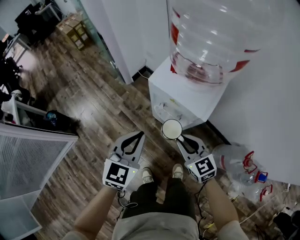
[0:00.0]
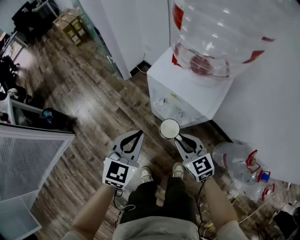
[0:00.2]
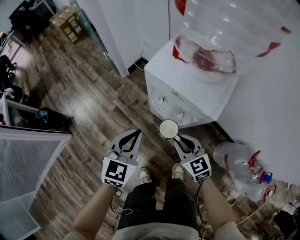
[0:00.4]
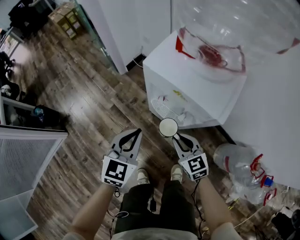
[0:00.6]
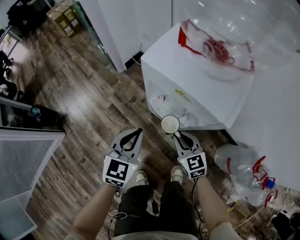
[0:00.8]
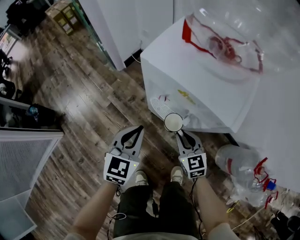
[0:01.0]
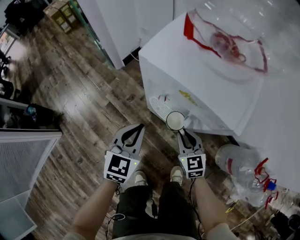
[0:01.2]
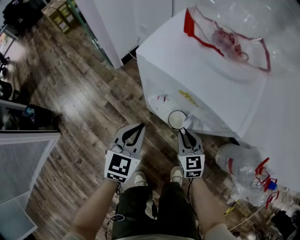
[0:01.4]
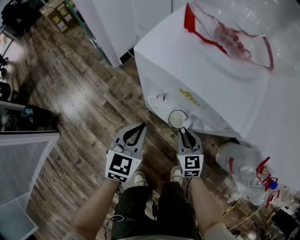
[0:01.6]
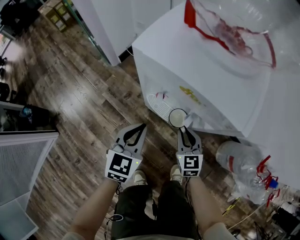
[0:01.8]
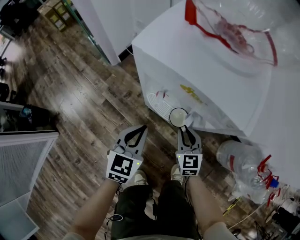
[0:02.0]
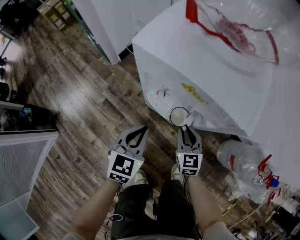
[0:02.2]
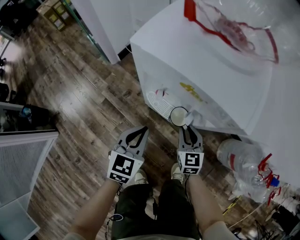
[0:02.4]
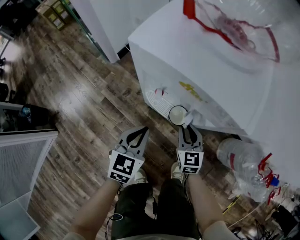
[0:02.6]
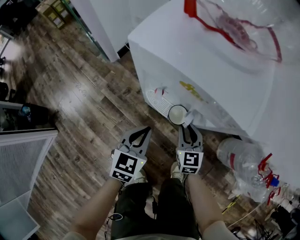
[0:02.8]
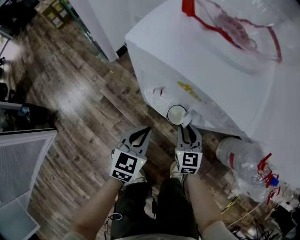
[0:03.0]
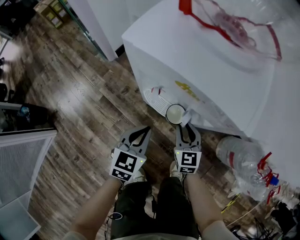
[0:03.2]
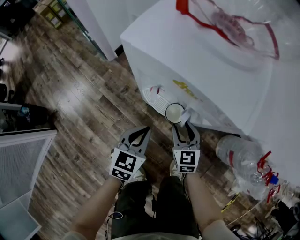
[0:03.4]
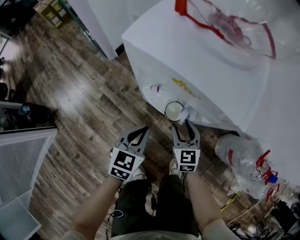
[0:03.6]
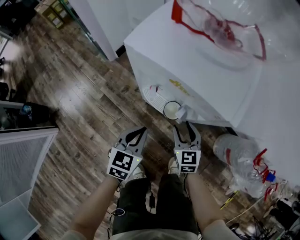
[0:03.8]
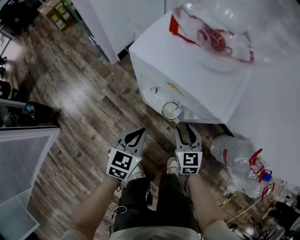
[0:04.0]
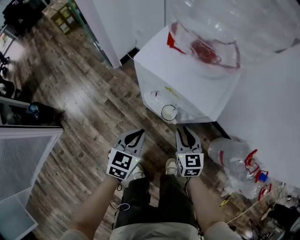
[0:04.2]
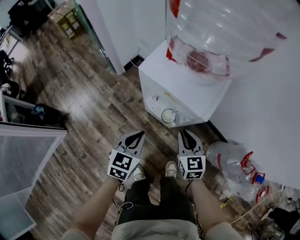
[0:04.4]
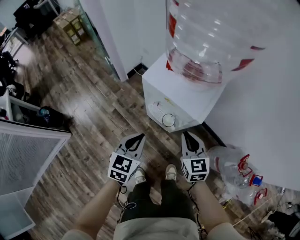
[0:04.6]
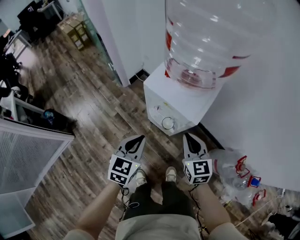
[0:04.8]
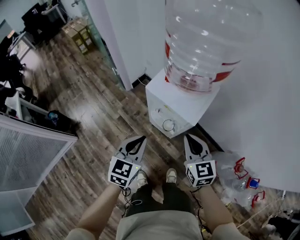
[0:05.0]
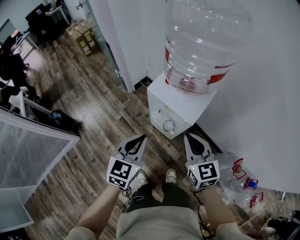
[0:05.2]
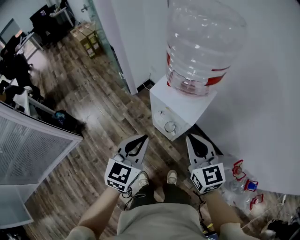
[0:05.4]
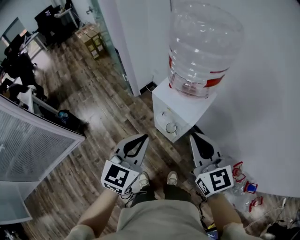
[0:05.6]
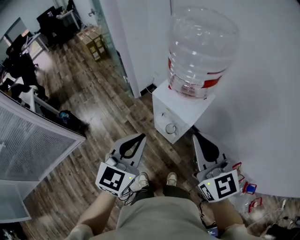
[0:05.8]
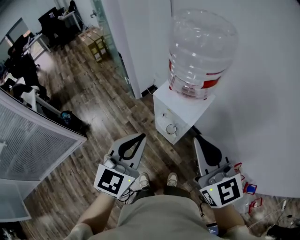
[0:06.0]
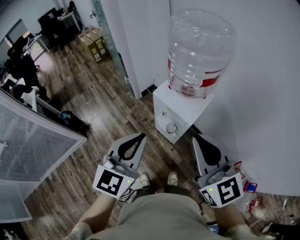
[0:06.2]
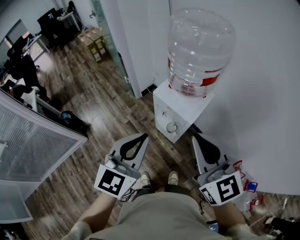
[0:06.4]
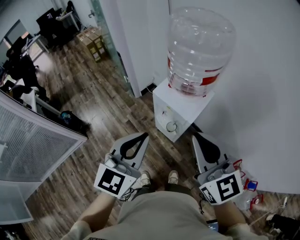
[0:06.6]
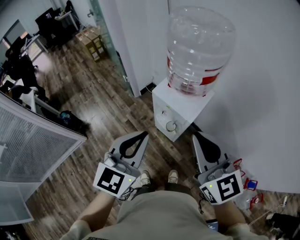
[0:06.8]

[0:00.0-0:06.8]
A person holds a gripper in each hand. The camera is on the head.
0:00.0 to 0:01.4: Both grippers travel together downward, about 25 cm. The right gripper changes its angle by about 20 degrees.
0:01.4 to 0:02.8: The left gripper heads downward, covering roughly 5 cm.
0:02.8 to 0:04.0: The right gripper travels upward by approximately 5 cm. Meanwhile the left gripper moves about 5 cm.
0:04.0 to 0:05.4: The two grippers go approximately 40 cm upward. The right gripper swivels about 20 degrees, and closes its fingers.
0:05.4 to 0:06.8: Both grippers travel together upward, roughly 15 cm.

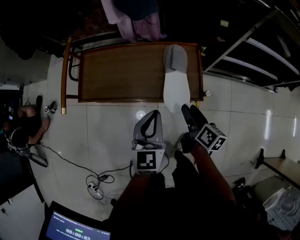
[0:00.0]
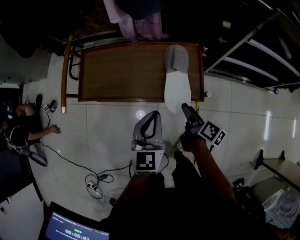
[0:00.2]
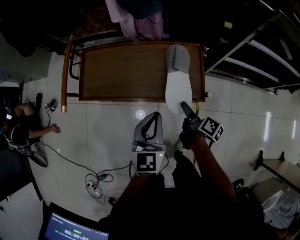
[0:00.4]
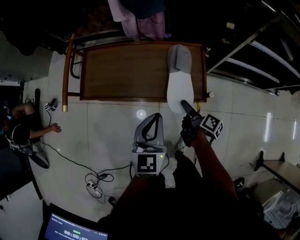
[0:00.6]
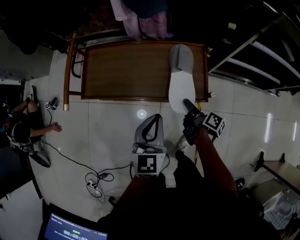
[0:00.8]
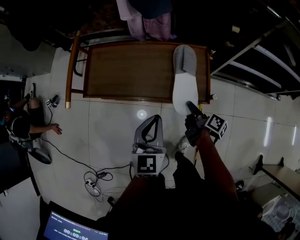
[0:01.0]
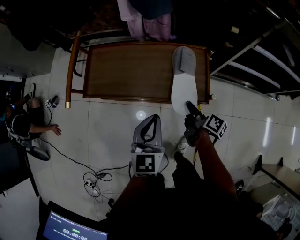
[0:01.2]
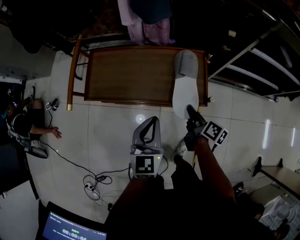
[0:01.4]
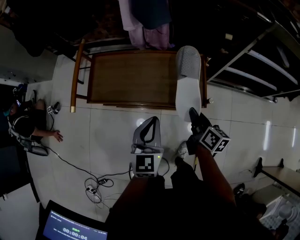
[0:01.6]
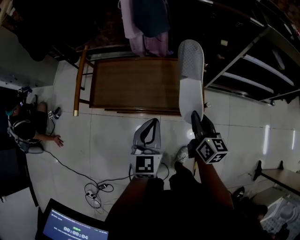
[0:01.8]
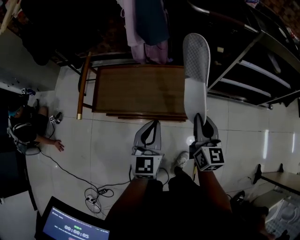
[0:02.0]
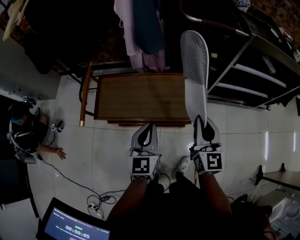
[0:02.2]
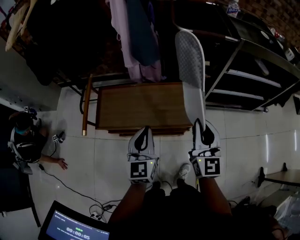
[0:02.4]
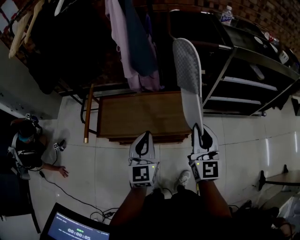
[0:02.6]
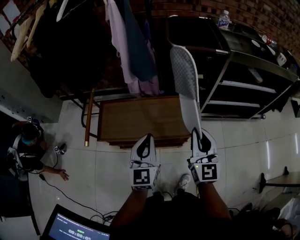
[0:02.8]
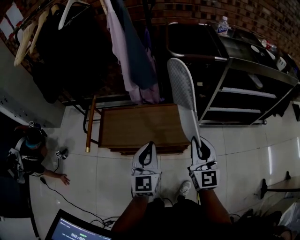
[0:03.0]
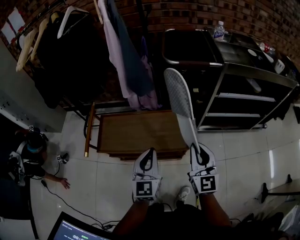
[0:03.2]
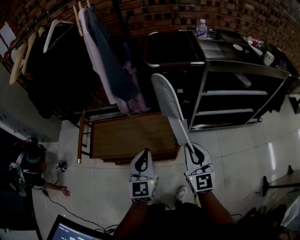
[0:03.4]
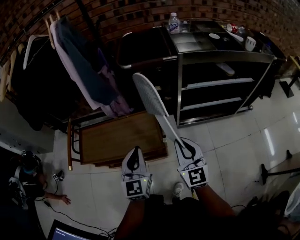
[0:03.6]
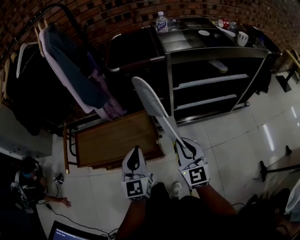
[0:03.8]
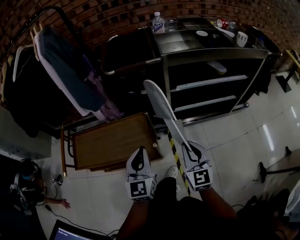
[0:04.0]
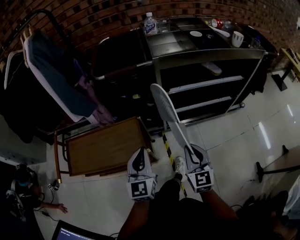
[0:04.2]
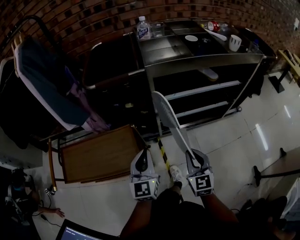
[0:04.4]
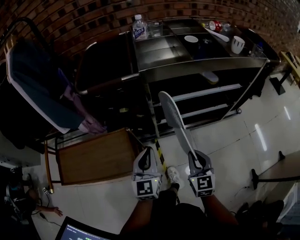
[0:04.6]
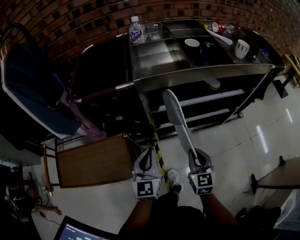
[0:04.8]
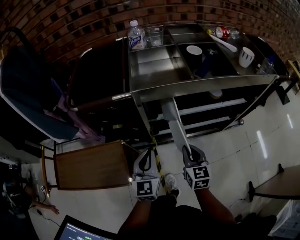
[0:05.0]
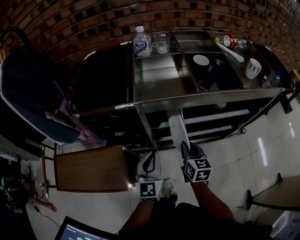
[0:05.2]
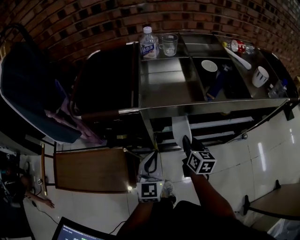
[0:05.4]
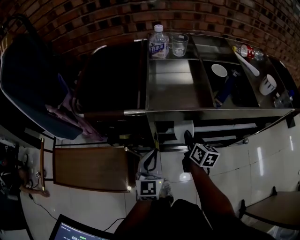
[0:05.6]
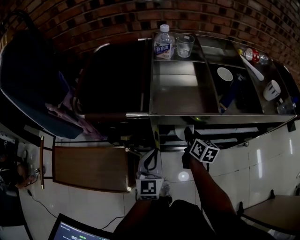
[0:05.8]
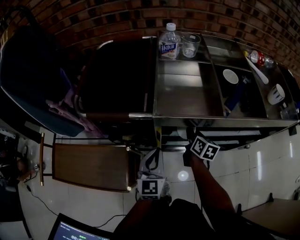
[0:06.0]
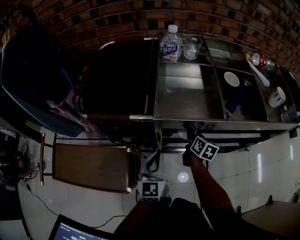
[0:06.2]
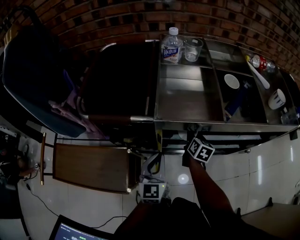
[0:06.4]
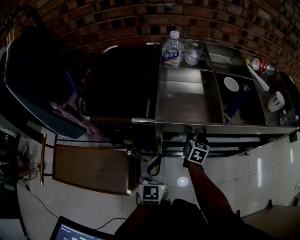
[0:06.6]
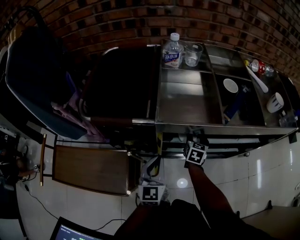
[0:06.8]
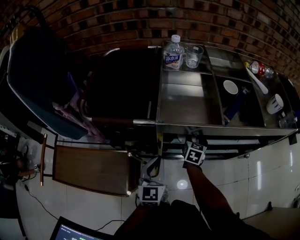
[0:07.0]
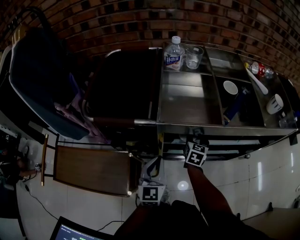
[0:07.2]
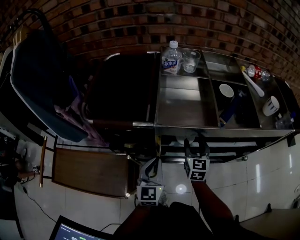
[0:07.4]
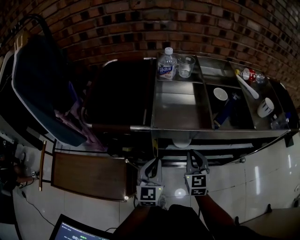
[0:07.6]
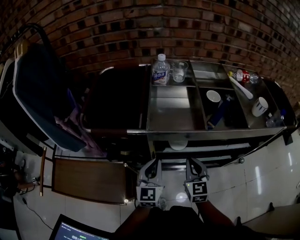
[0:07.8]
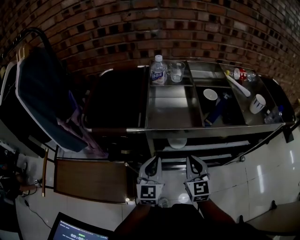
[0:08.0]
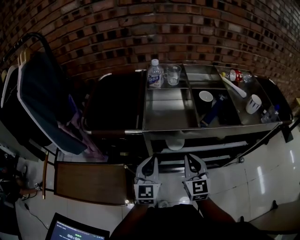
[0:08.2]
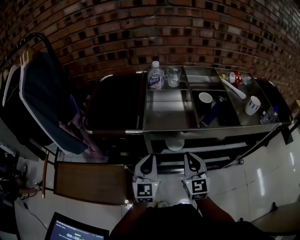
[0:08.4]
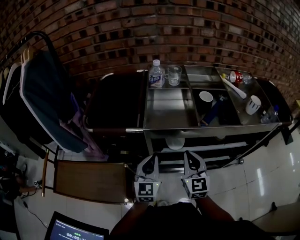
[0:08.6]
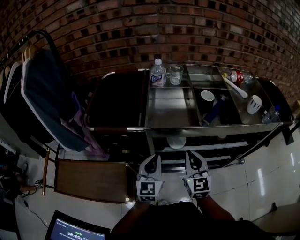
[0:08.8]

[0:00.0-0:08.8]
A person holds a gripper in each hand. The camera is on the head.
0:00.0 to 0:01.4: The right gripper closes up.
0:01.4 to 0:03.0: The right gripper heads upward, covering about 30 cm, and twists roughly 60 degrees counterclockwise, seen from behind. The left gripper shifts some 15 cm upward.
0:03.0 to 0:04.4: The right gripper is displaced to the right and downward by some 30 cm, and changes its angle by some 20 degrees. Meanwhile the left gripper goes about 30 cm to the right.
0:04.4 to 0:05.8: The left gripper is displaced forward and to the right by roughly 20 cm; the right gripper travels forward by approximately 35 cm, and swivels some 40 degrees.
0:05.8 to 0:07.4: The right gripper swivels roughly 40 degrees, and opens its fingers.
0:07.4 to 0:08.8: The right gripper shifts about 15 cm upward and backward, and closes up. The left gripper moves upward, some 5 cm.

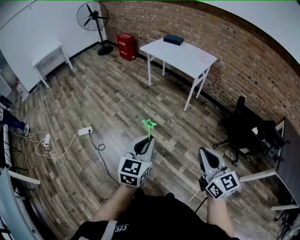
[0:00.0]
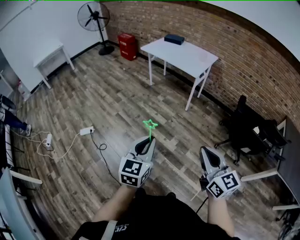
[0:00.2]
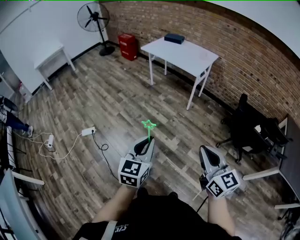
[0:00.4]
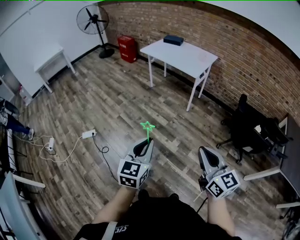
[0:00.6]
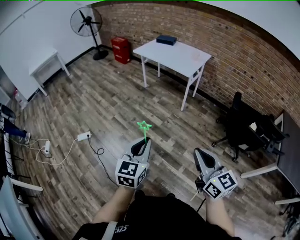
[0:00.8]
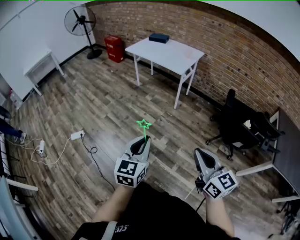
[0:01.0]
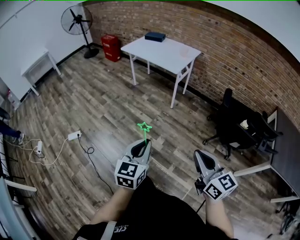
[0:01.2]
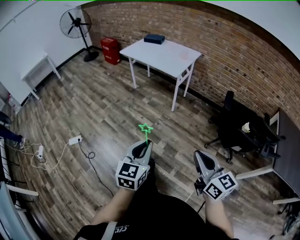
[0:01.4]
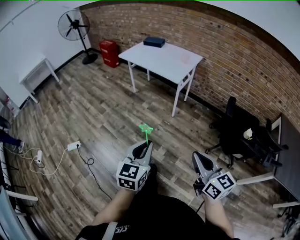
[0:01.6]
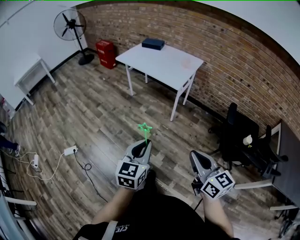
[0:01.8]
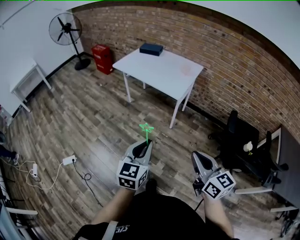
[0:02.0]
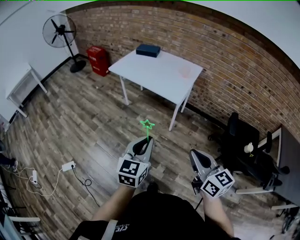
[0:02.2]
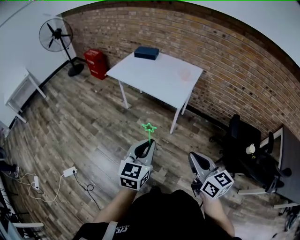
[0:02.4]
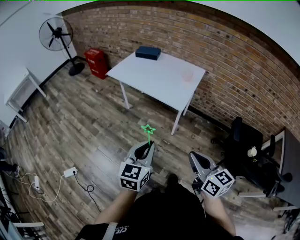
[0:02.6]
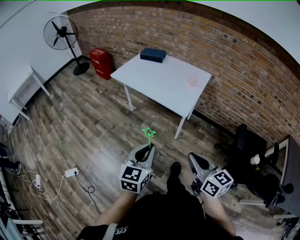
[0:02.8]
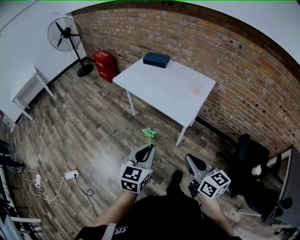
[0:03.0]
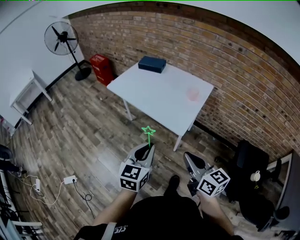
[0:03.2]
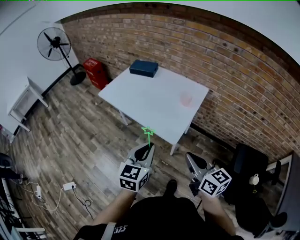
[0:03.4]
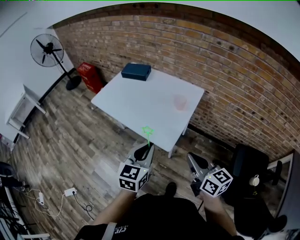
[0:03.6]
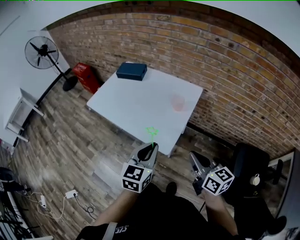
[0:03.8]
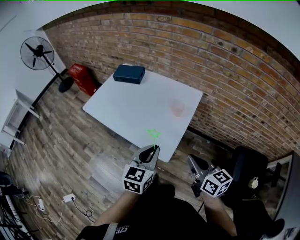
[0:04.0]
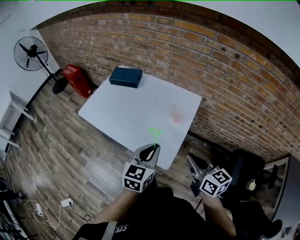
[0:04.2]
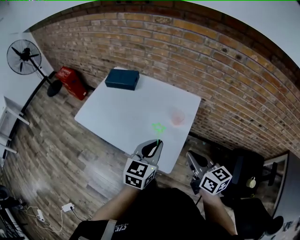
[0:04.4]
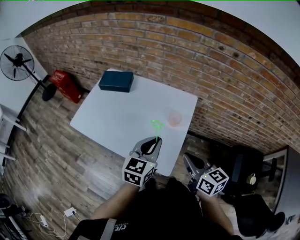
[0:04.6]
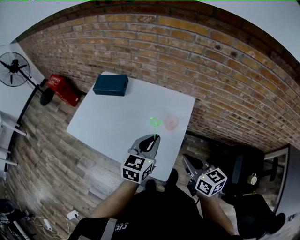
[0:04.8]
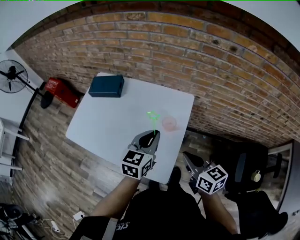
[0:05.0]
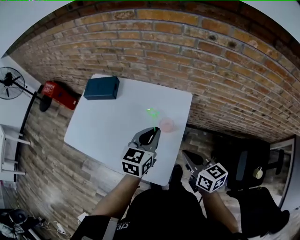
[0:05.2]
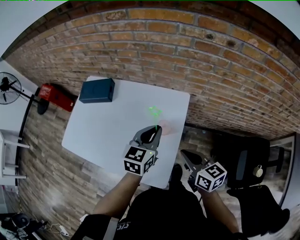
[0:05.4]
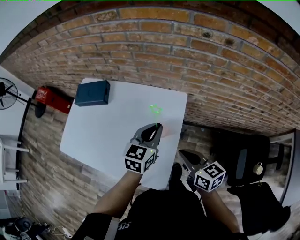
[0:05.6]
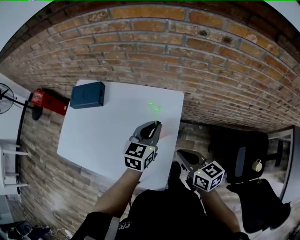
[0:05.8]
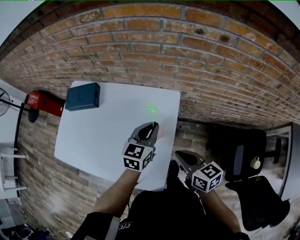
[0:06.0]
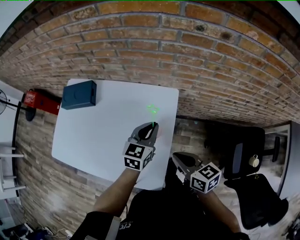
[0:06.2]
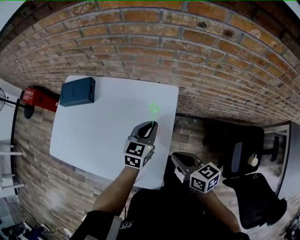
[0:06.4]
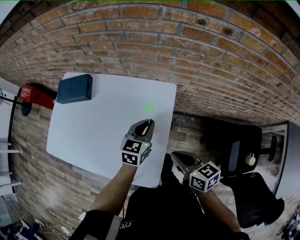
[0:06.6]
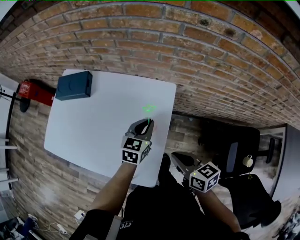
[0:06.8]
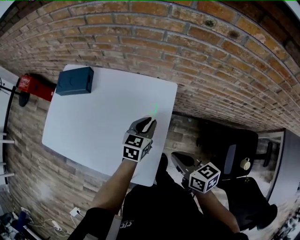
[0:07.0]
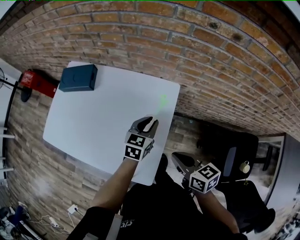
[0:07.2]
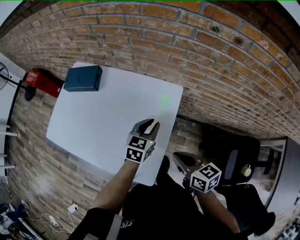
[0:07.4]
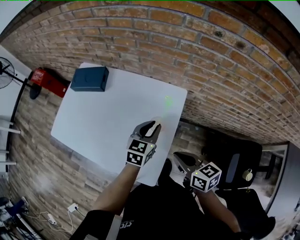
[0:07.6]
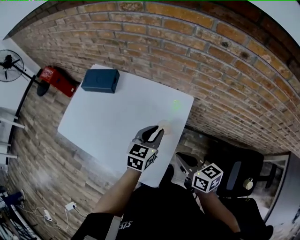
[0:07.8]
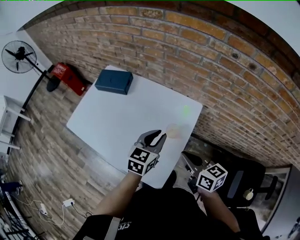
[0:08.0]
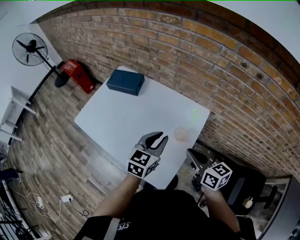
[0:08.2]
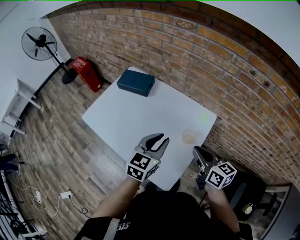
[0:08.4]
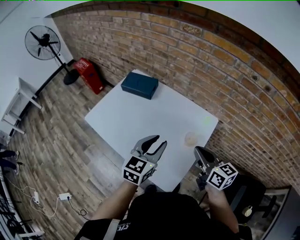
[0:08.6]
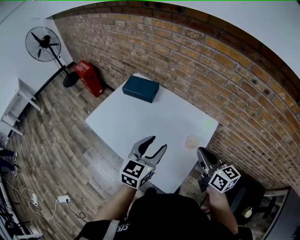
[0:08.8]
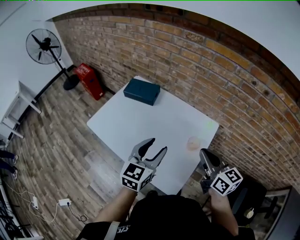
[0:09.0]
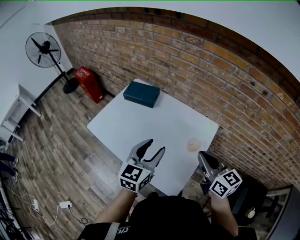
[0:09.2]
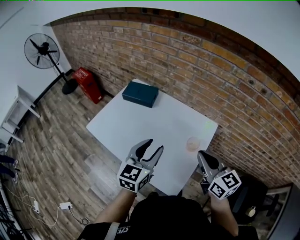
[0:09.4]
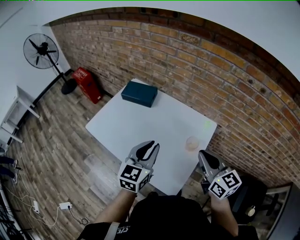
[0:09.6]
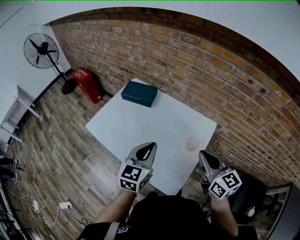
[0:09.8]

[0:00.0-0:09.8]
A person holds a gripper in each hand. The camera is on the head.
0:00.0 to 0:01.4: Both grippers move to the right, some 10 cm.
0:01.4 to 0:02.8: The pair of grippers is taken forward, approximately 40 cm.
0:02.8 to 0:04.2: Both grippers are carried forward and to the right, approximately 40 cm.
0:04.2 to 0:05.6: The right gripper heads forward and downward, covering approximately 20 cm. The left gripper is displaced forward and to the right by about 30 cm.
0:05.6 to 0:07.0: The left gripper is displaced downward by roughly 10 cm.
0:07.0 to 0:08.4: The right gripper moves upward and to the left, roughly 10 cm; the left gripper shifts about 20 cm to the left, upward and backward.
0:08.4 to 0:09.8: The right gripper is displaced upward by some 10 cm, while the left gripper heads to the left, covering some 10 cm, and opens and closes again.
